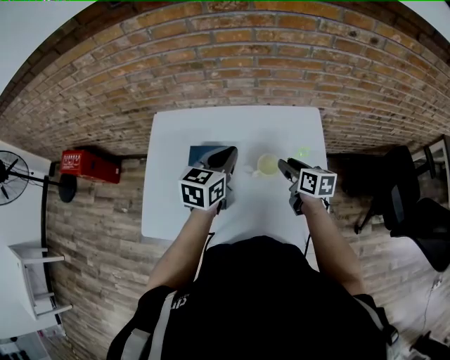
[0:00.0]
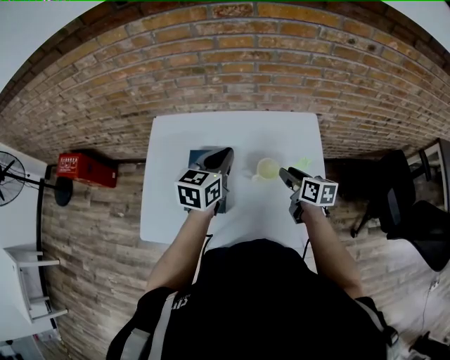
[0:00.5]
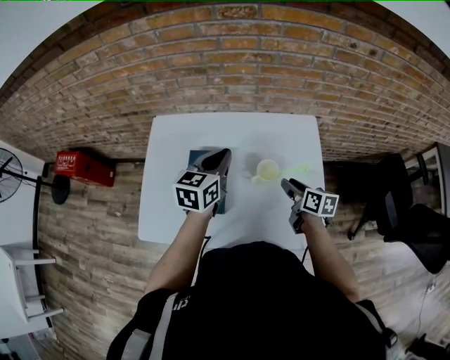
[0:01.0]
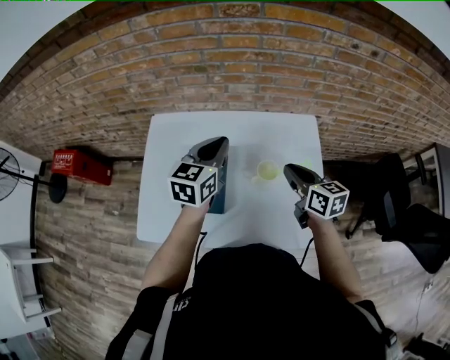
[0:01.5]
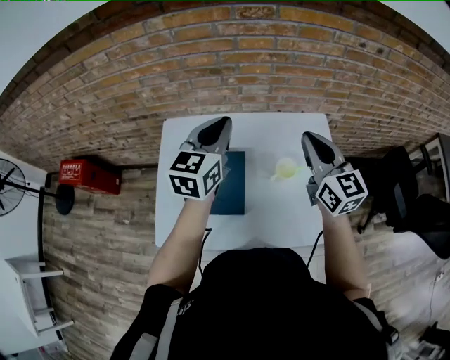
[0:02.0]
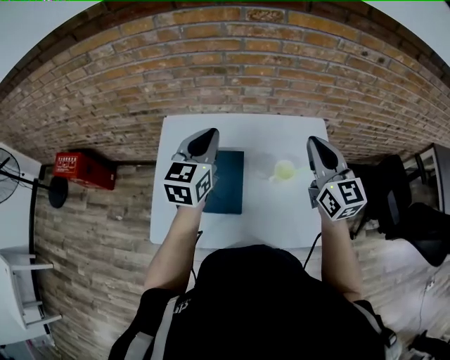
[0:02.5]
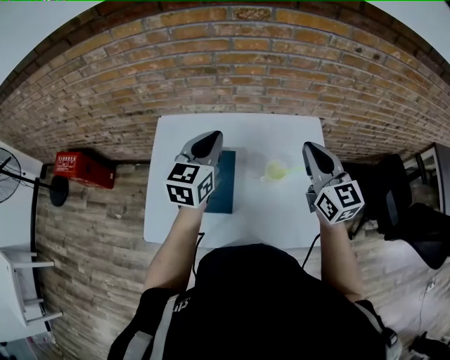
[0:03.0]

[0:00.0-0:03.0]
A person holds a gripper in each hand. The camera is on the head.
0:00.0 to 0:01.5: The left gripper shifts by about 5 cm. Meanwhile the right gripper is displaced upward by about 10 cm, and closes up.
0:01.5 to 0:03.0: The right gripper goes some 10 cm upward, and swivels roughly 30 degrees.

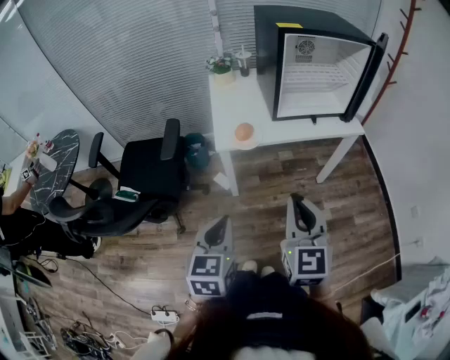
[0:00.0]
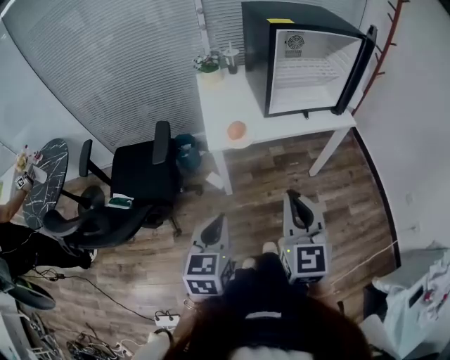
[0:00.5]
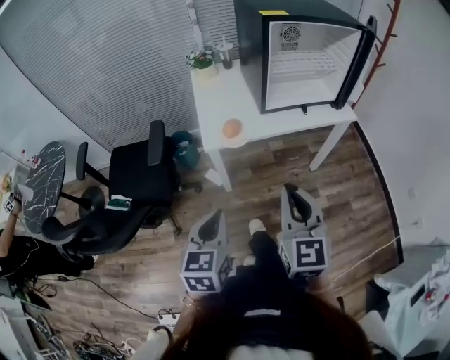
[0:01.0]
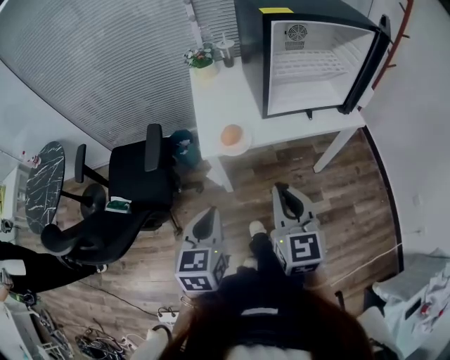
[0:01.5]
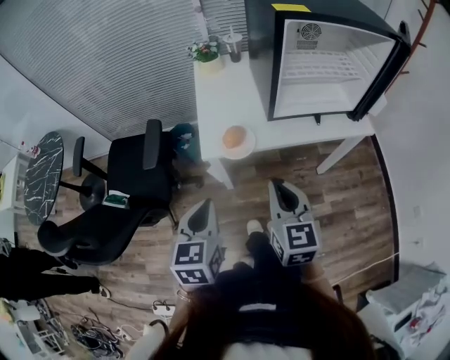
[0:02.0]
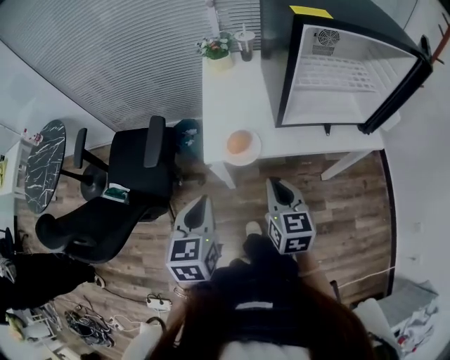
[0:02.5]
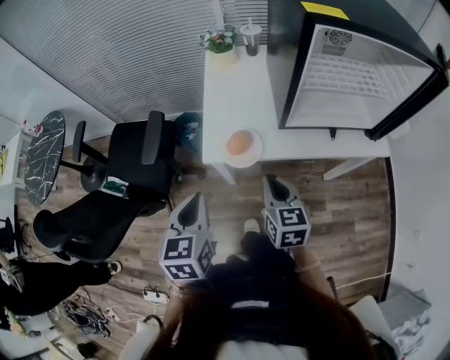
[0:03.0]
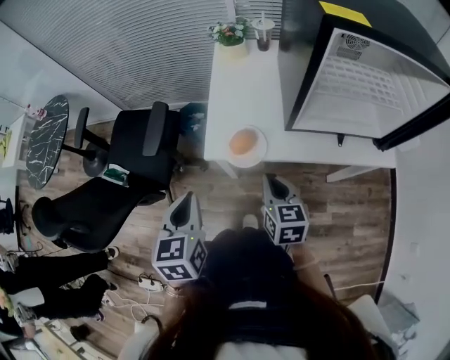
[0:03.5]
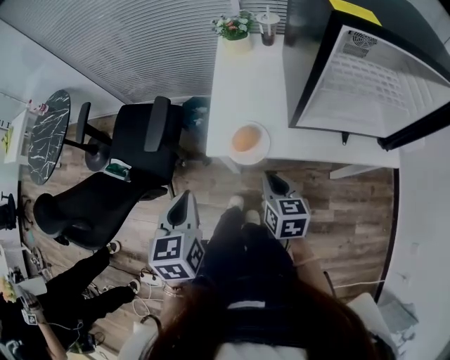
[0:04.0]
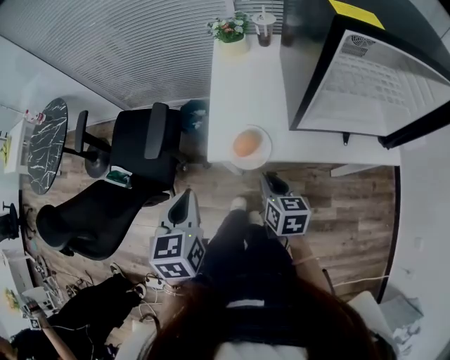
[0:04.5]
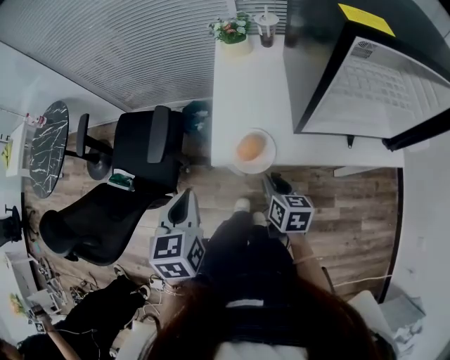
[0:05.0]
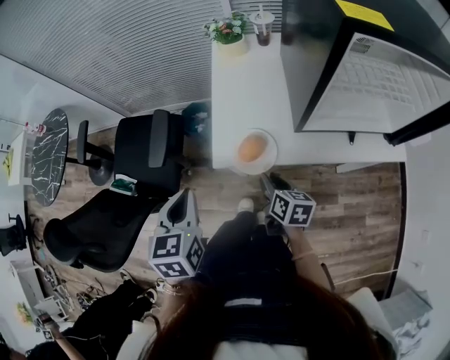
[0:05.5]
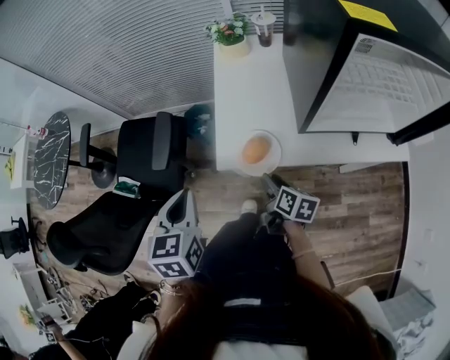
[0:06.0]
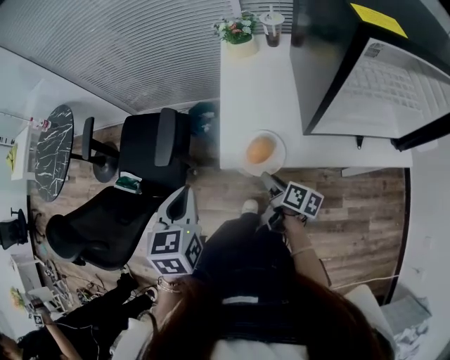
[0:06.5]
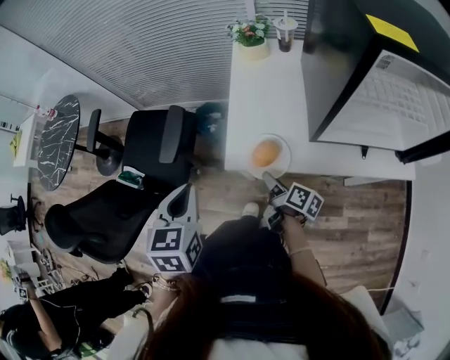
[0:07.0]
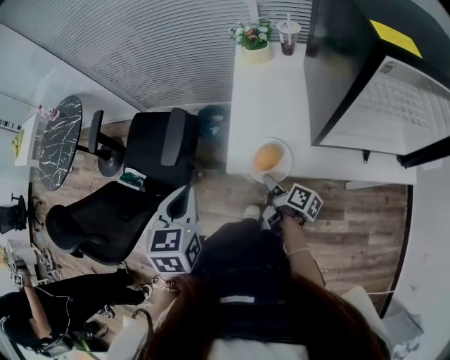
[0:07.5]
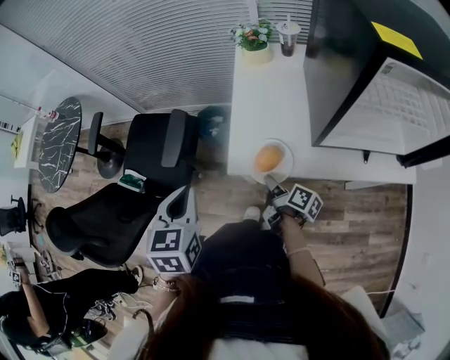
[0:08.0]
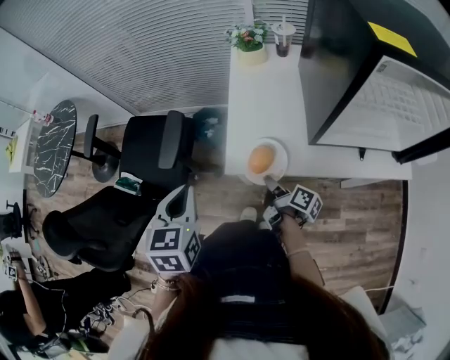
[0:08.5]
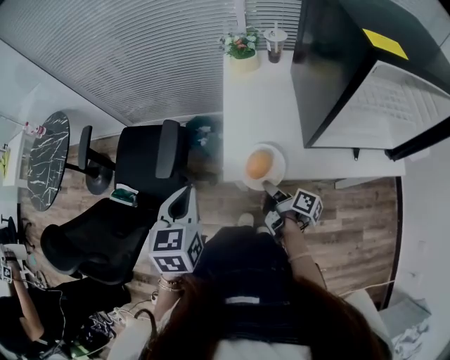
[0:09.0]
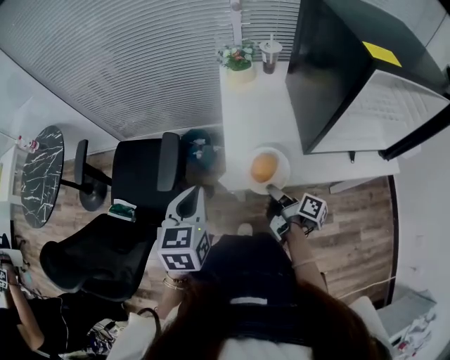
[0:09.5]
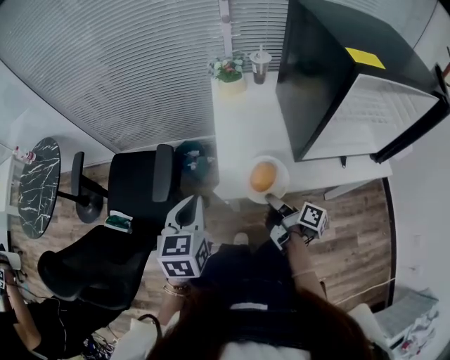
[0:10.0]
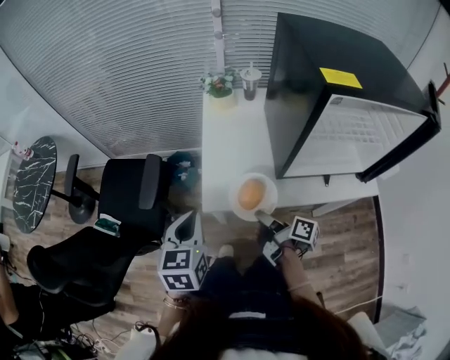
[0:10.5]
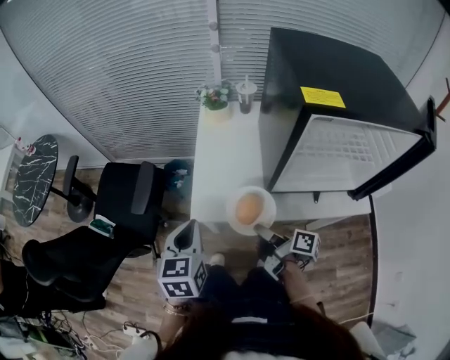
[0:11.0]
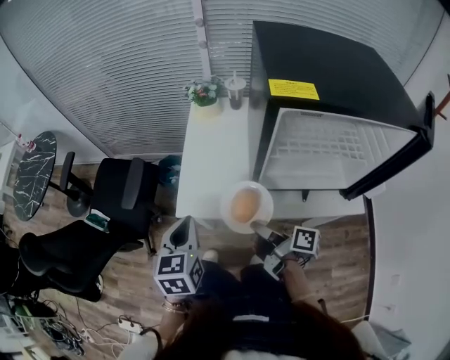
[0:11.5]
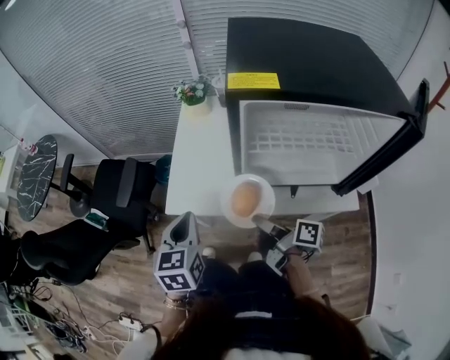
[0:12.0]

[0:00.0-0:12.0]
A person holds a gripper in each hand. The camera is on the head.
0:00.0 to 0:02.0: The right gripper shifts some 15 cm forward and downward. The left gripper travels forward by about 15 cm.
0:02.0 to 0:04.0: The right gripper shifts about 15 cm downward and forward, and changes its angle by about 20 degrees. The left gripper is displaced forward by some 5 cm.
0:04.0 to 0:06.0: The left gripper shifts about 5 cm forward. Meanwhile the right gripper heads downward, covering approximately 10 cm, changes its angle by some 30 degrees, and opens its fingers.
0:06.0 to 0:08.0: The right gripper swivels approximately 30 degrees, and closes up.
0:08.0 to 0:10.0: The right gripper heads upward, covering approximately 5 cm.
0:10.0 to 0:12.0: The right gripper heads to the right and upward, covering about 20 cm, and turns by about 20 degrees. The left gripper travels to the right by approximately 20 cm.

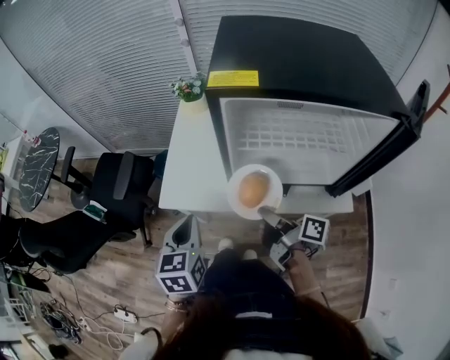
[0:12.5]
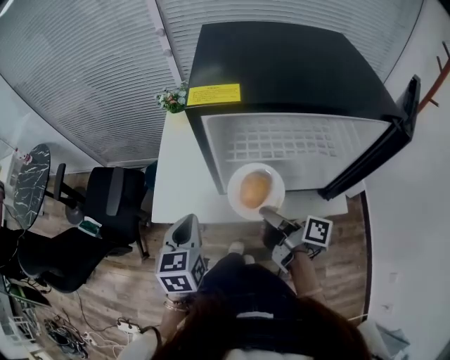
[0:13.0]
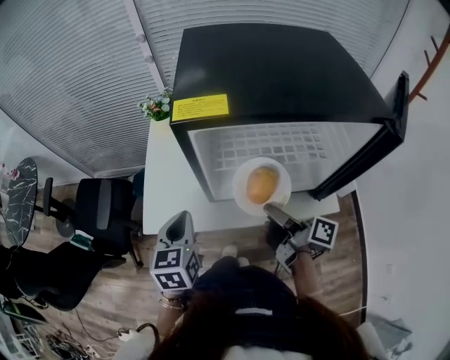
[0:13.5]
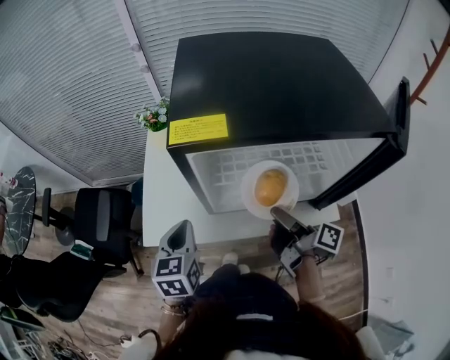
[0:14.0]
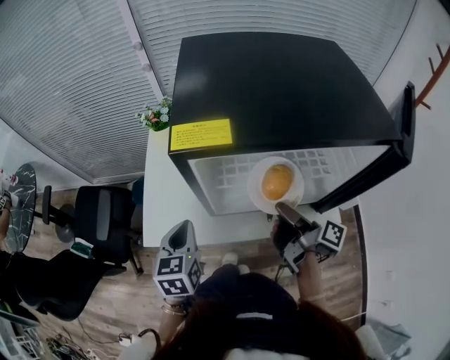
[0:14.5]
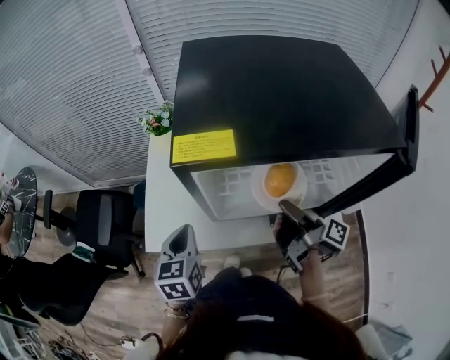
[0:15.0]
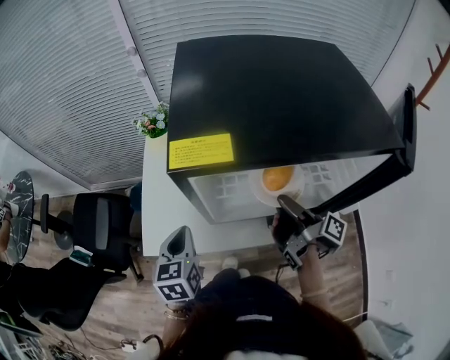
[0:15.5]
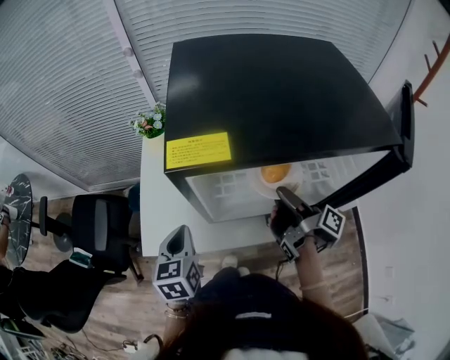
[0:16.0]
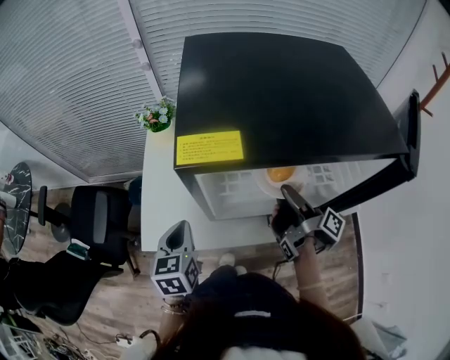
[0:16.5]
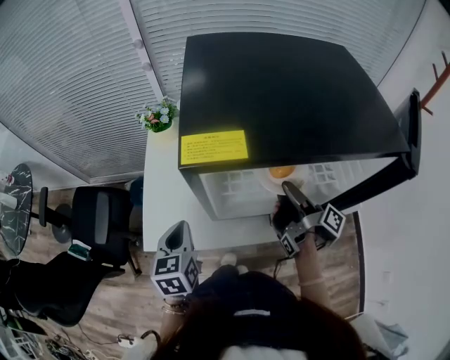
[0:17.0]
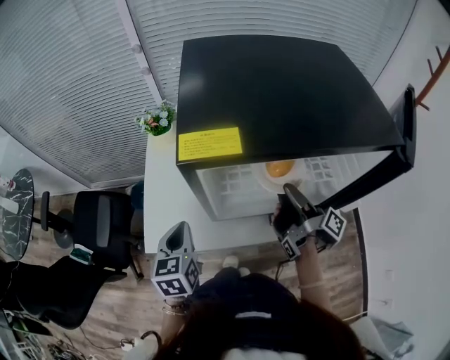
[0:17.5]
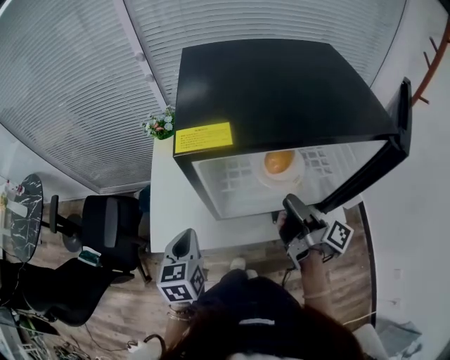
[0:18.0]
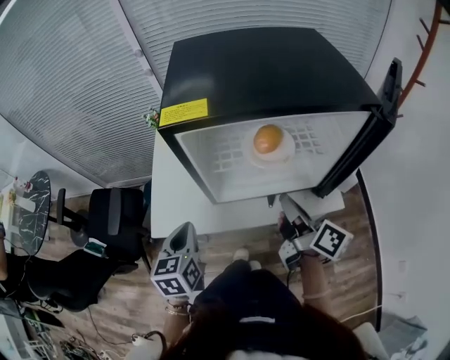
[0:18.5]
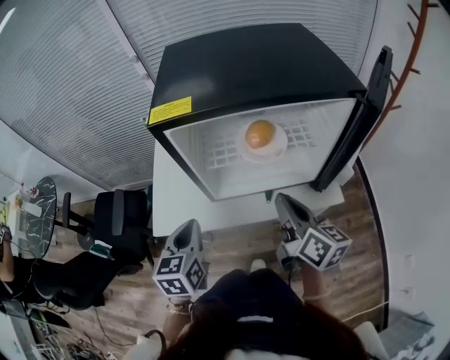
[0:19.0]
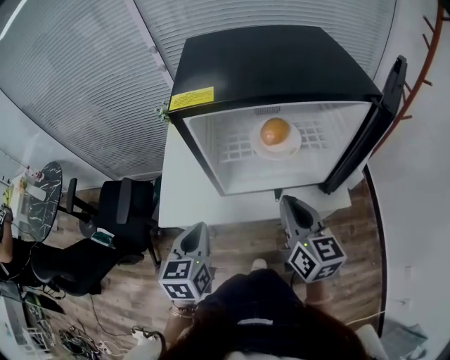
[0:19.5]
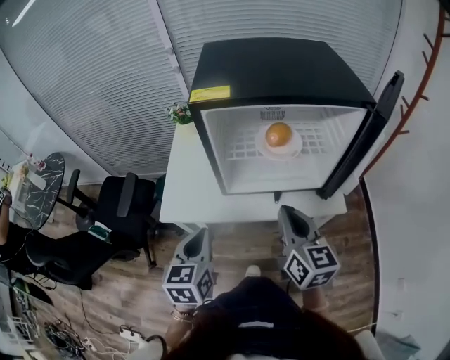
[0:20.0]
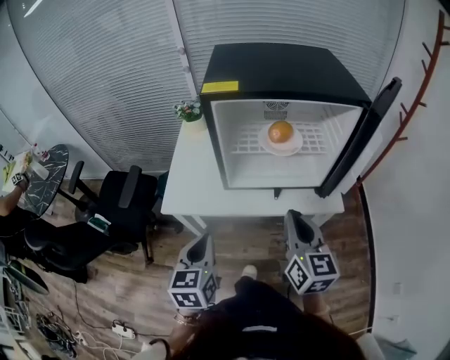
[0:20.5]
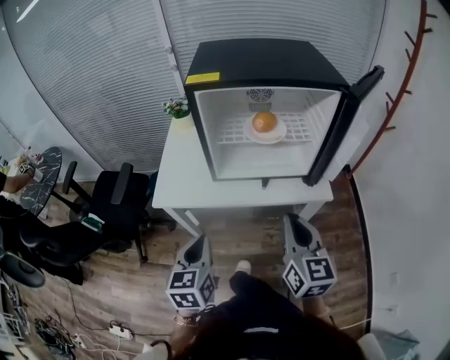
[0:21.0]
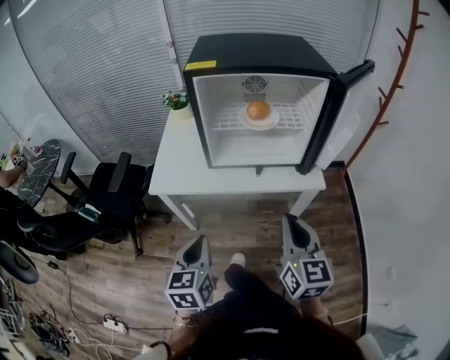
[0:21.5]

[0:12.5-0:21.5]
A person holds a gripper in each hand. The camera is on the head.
0:12.5 to 0:14.5: The right gripper travels to the right and forward by approximately 15 cm, and swivels some 20 degrees. Meanwhile the left gripper travels forward and to the right by roughly 10 cm.
0:14.5 to 0:17.0: The right gripper is displaced forward by approximately 5 cm, and opens.
0:17.0 to 0:19.5: The left gripper shifts roughly 10 cm backward. Meanwhile the right gripper heads backward and upward, covering roughly 15 cm, twists roughly 80 degrees counterclockwise, seen from behind, and closes up.
0:19.5 to 0:21.5: Both grippers travel together backward, approximately 20 cm.

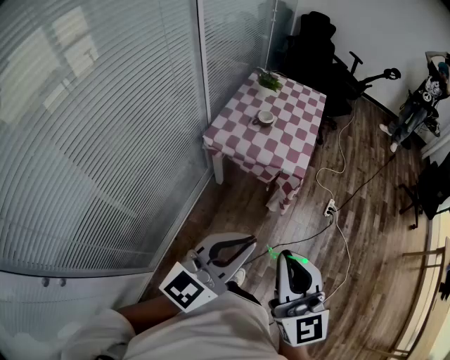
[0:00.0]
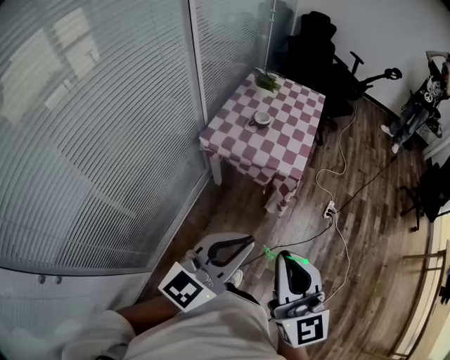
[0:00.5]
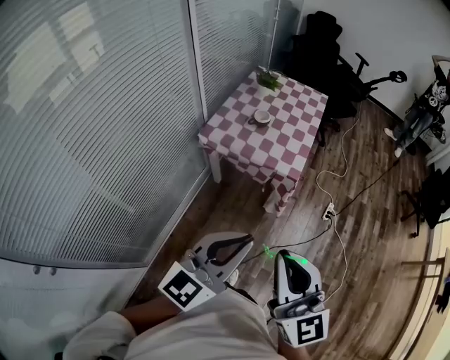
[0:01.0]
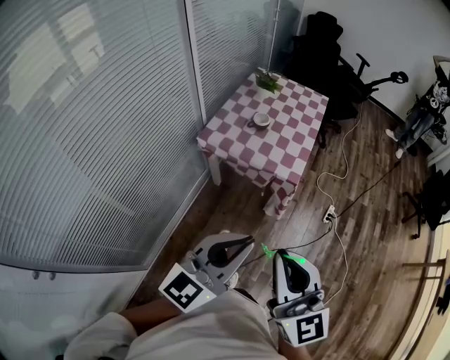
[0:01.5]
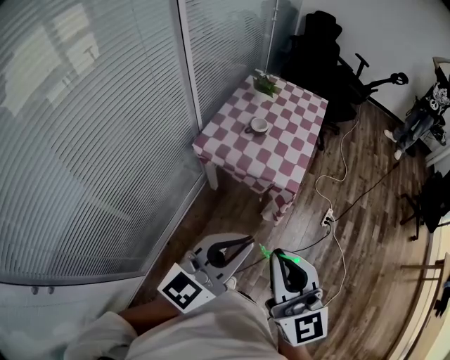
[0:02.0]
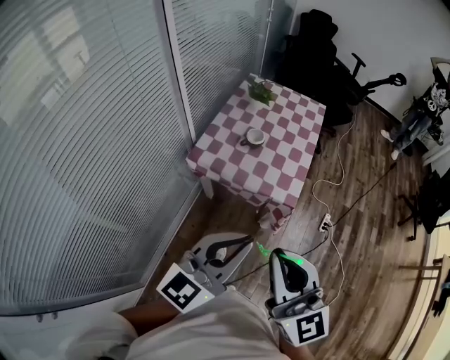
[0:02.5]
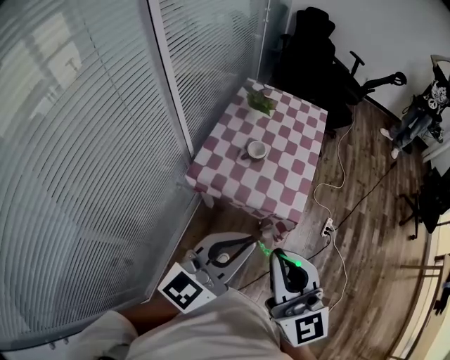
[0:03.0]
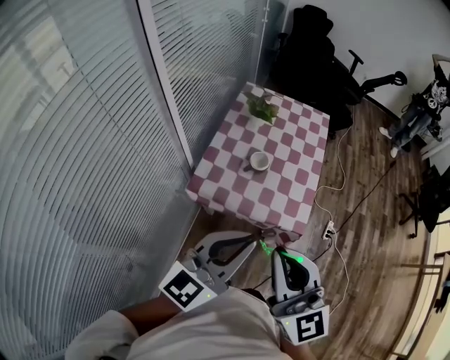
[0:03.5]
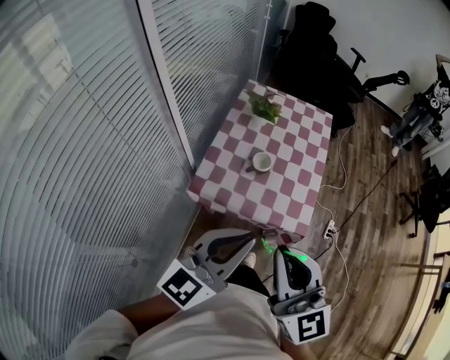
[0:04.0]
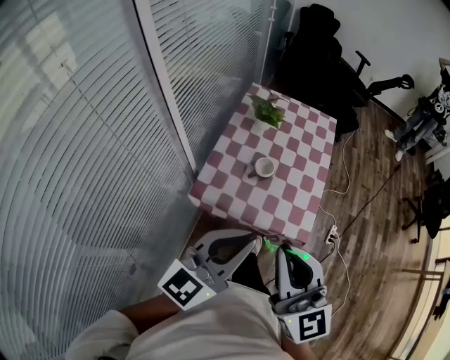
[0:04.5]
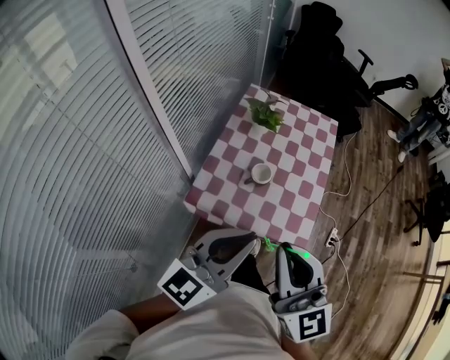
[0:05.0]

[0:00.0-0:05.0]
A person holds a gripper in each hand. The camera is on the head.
0:00.0 to 0:02.5: The grippers both shift forward by about 20 cm.
0:02.5 to 0:05.0: Both grippers move forward, some 25 cm.
